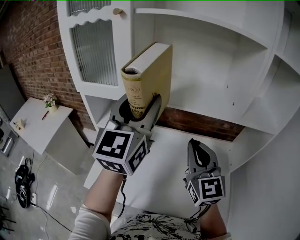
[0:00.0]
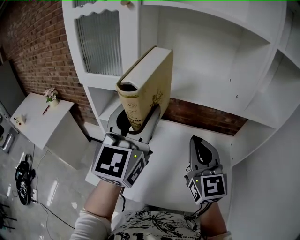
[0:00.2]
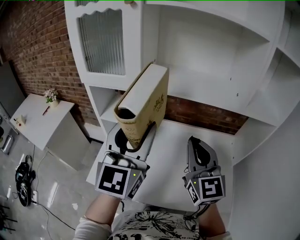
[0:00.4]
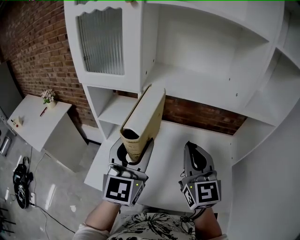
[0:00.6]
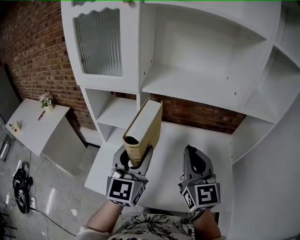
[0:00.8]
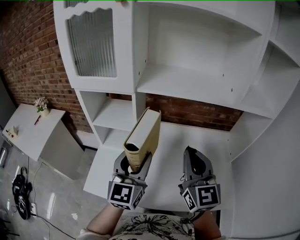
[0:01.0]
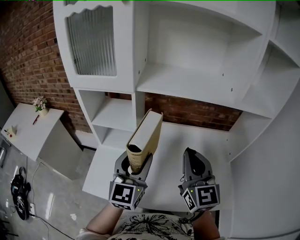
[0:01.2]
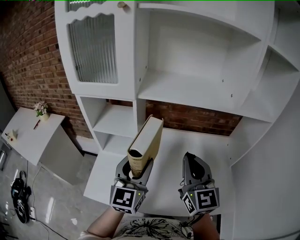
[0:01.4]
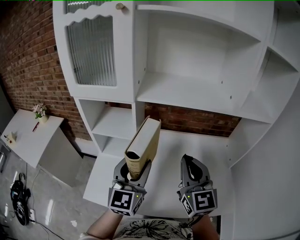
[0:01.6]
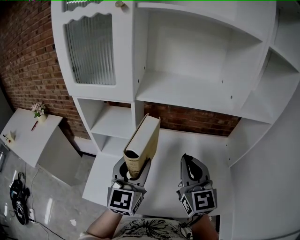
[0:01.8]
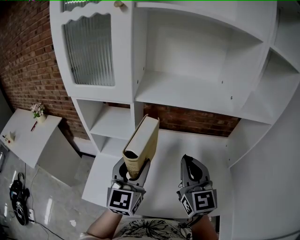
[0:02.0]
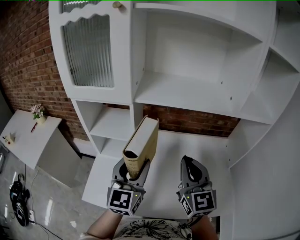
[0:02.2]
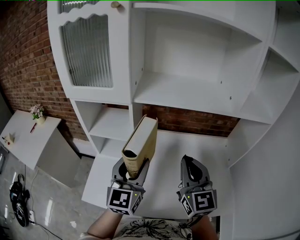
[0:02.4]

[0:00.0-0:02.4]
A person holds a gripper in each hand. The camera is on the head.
0.0 to 1.2 s: The right gripper heads downward, covering roughly 5 cm. The left gripper heads downward, covering roughly 25 cm.
1.2 to 2.4 s: The grippers make only small movements.

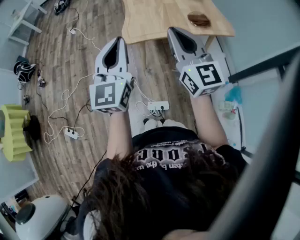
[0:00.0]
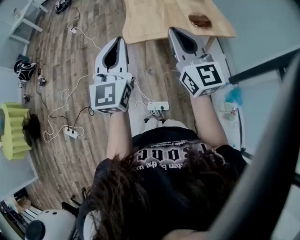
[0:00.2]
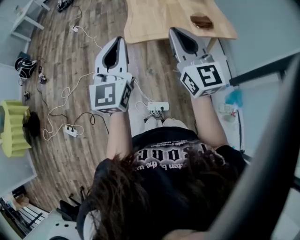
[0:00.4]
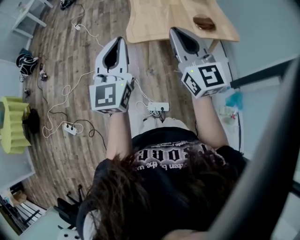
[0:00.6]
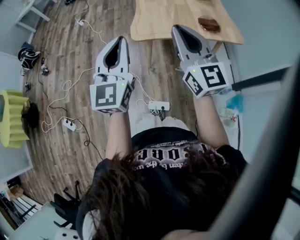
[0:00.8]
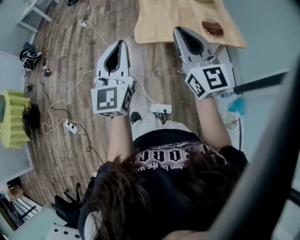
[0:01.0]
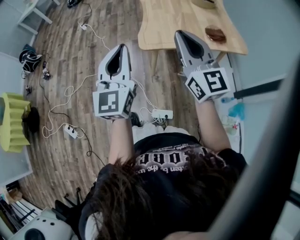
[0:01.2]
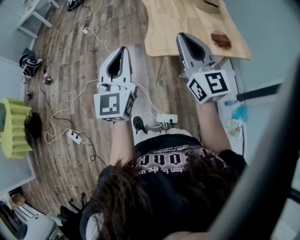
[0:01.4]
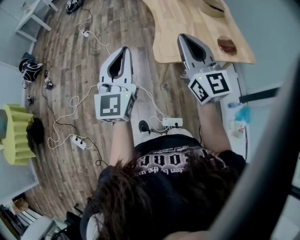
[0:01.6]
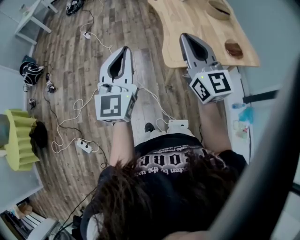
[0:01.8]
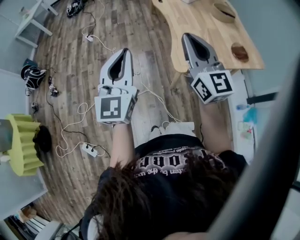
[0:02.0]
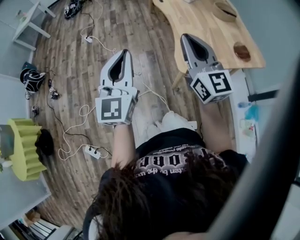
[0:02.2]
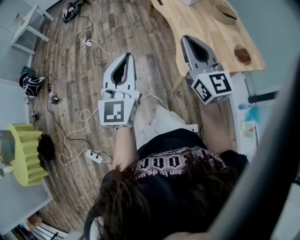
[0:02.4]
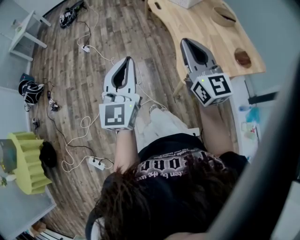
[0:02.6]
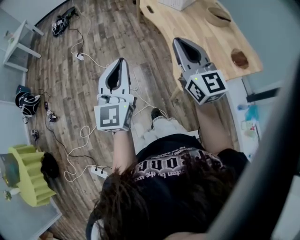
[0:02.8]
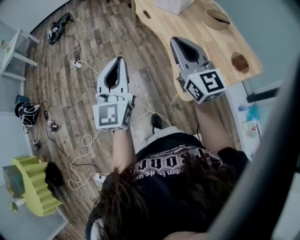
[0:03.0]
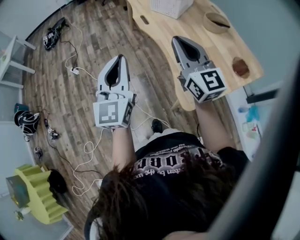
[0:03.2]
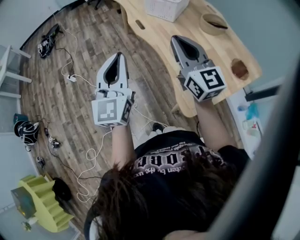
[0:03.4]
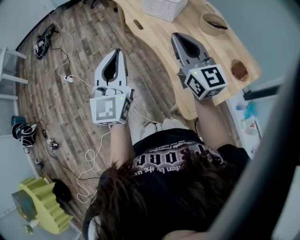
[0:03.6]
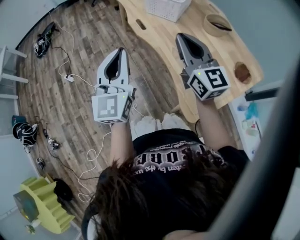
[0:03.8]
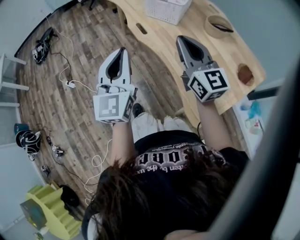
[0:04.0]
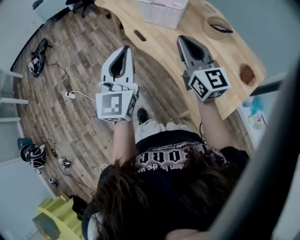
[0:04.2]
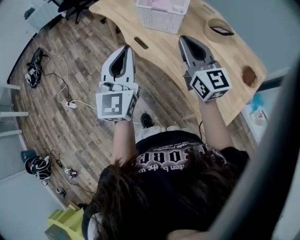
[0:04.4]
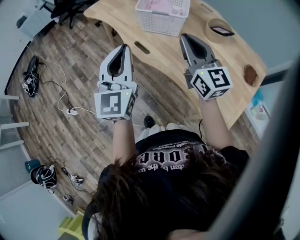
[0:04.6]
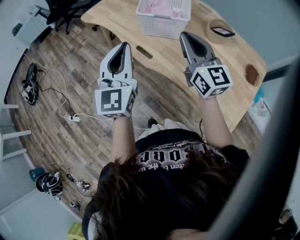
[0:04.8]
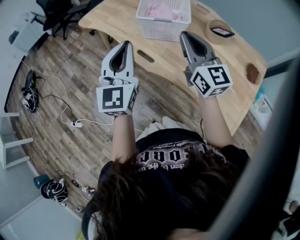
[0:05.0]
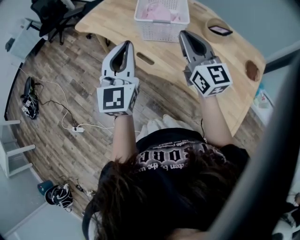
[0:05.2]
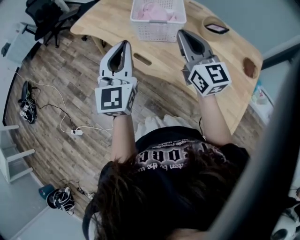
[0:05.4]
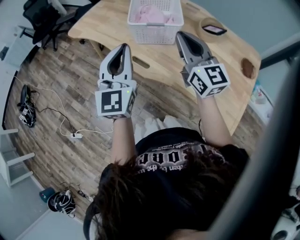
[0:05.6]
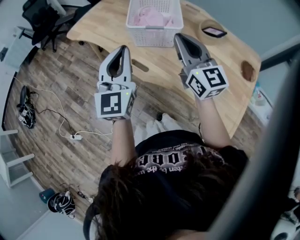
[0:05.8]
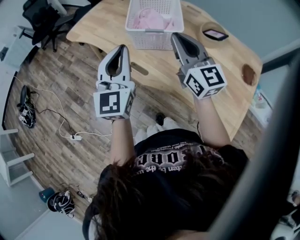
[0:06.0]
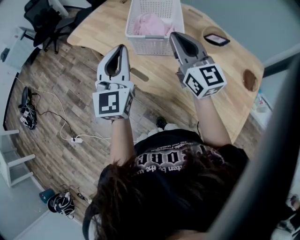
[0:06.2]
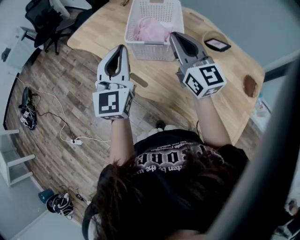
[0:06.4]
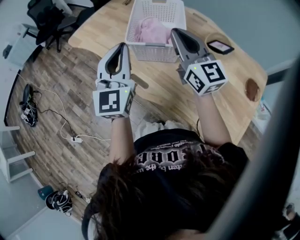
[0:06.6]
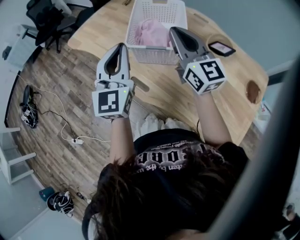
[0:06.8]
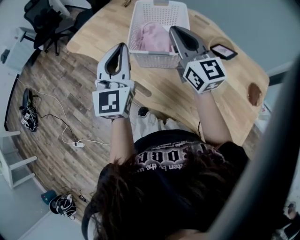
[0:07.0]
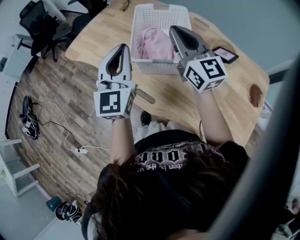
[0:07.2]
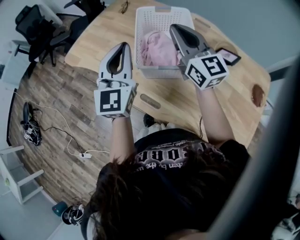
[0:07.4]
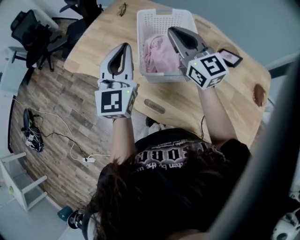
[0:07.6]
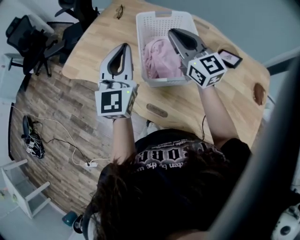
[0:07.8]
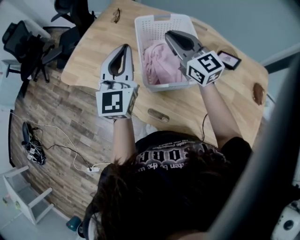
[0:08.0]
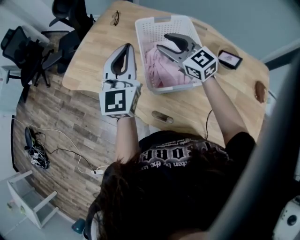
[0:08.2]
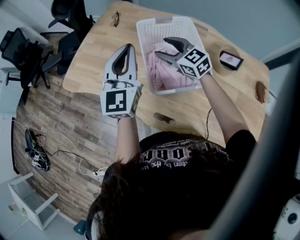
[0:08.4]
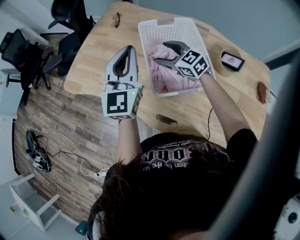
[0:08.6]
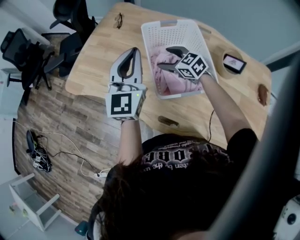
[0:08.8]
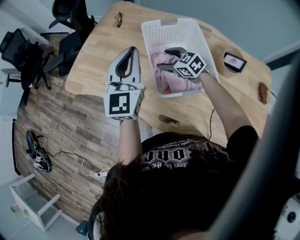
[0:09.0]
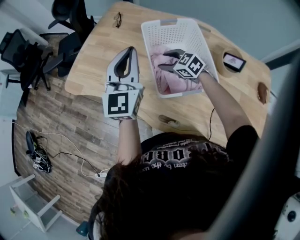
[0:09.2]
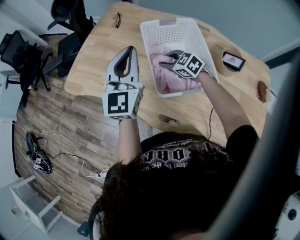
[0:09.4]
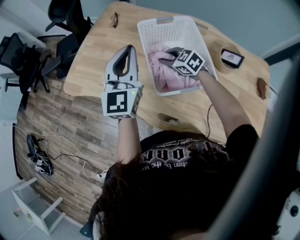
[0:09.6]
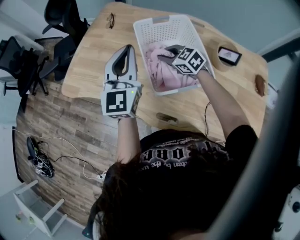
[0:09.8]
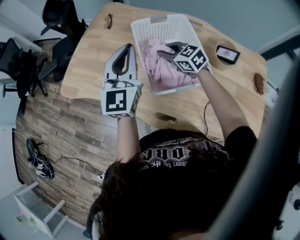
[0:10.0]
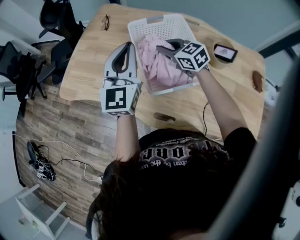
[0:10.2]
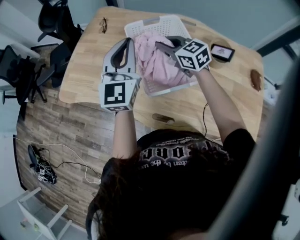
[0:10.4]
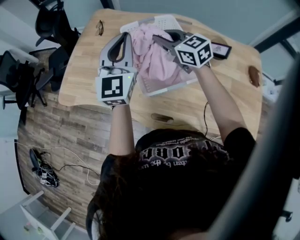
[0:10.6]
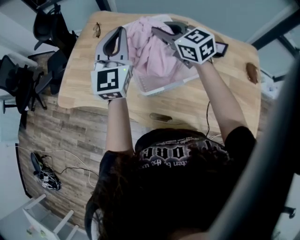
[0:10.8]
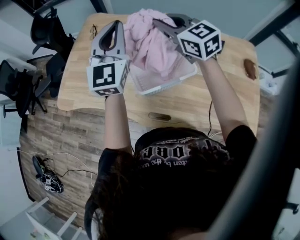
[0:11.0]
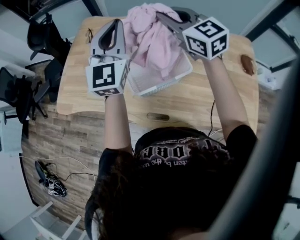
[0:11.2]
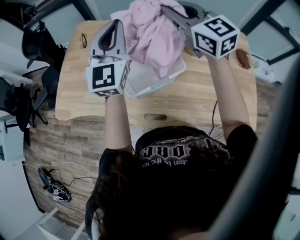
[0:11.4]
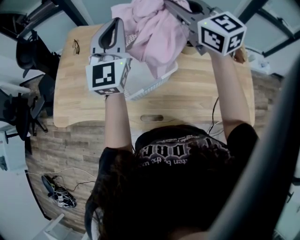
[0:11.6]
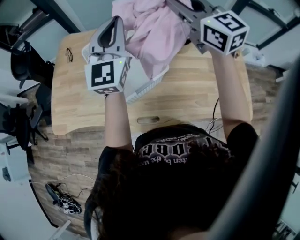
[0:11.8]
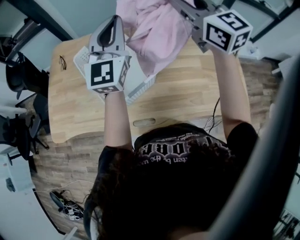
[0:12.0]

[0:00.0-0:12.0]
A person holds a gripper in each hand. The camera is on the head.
0.0 to 1.6 s: The grippers both shift to the left and forward by some 20 cm.
1.6 to 3.0 s: Both grippers move forward and to the left, approximately 25 cm.
3.0 to 4.4 s: The grippers both shift forward by some 30 cm. The left gripper swivels approximately 20 degrees. Meanwhile the right gripper rotates about 20 degrees.
4.4 to 6.0 s: The grippers both shift forward by about 15 cm.
6.0 to 7.6 s: Both grippers move forward, roughly 20 cm.
7.6 to 9.0 s: The left gripper goes roughly 10 cm forward; the right gripper goes about 25 cm downward and forward, tips its fingers downward by roughly 40 degrees, and opens.
9.0 to 10.4 s: The left gripper shifts by approximately 5 cm, while the right gripper travels upward by approximately 10 cm, turns by some 20 degrees, and closes its fingers.
10.4 to 12.0 s: The right gripper changes place by about 35 cm, and turns by roughly 40 degrees, while the left gripper changes place by roughly 20 cm, and rotates some 20 degrees.

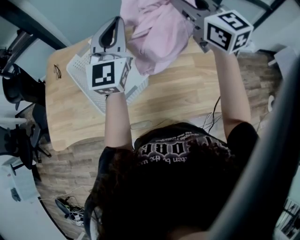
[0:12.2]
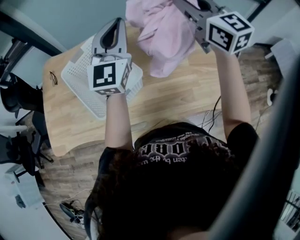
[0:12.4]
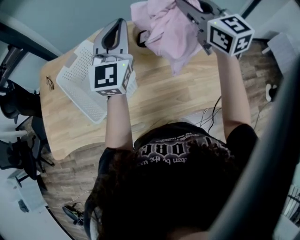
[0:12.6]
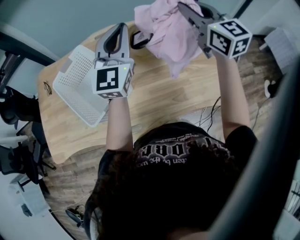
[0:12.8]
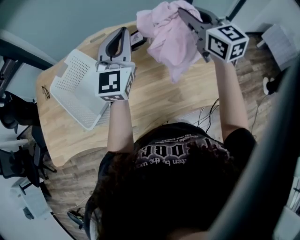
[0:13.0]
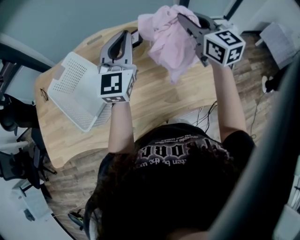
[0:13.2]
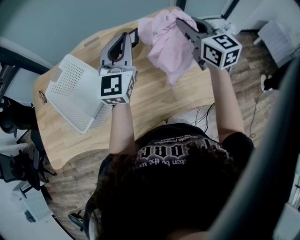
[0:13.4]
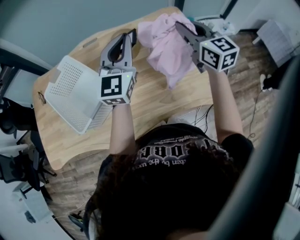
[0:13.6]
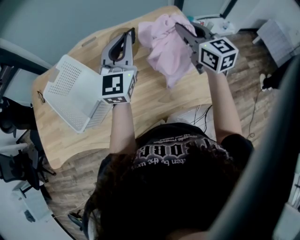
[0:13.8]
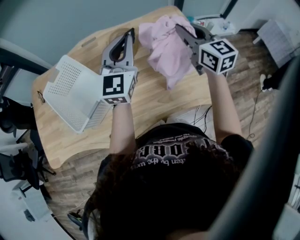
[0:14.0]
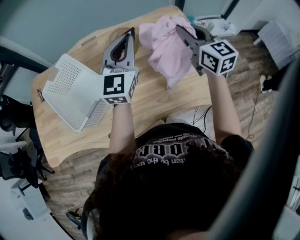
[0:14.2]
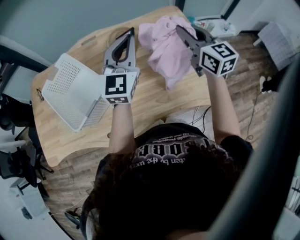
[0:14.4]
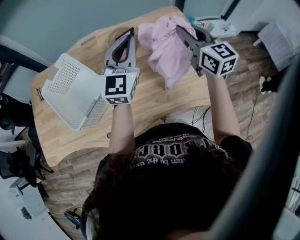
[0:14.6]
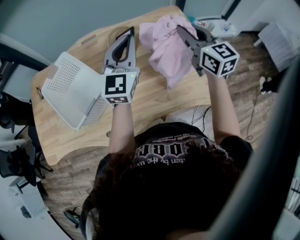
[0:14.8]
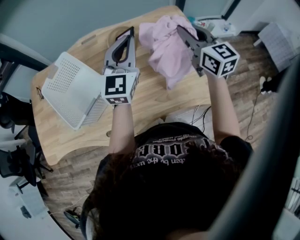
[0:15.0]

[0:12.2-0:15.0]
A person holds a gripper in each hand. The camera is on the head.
12.2 to 13.6 s: The right gripper is displaced to the right and downward by some 25 cm. The left gripper travels to the right by roughly 20 cm.
13.6 to 15.0 s: The grippers move only a little.

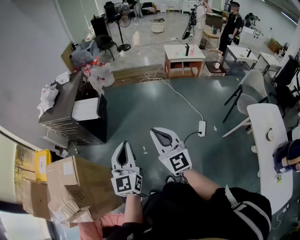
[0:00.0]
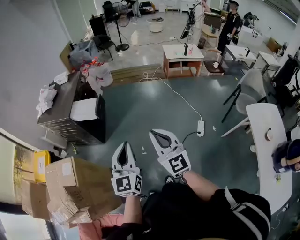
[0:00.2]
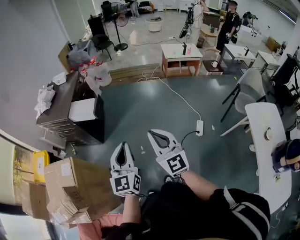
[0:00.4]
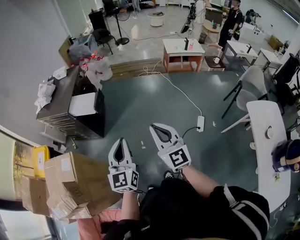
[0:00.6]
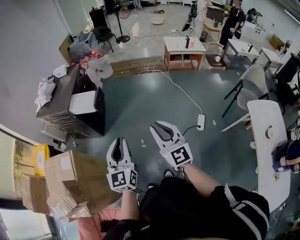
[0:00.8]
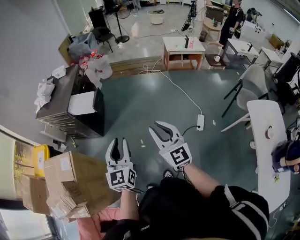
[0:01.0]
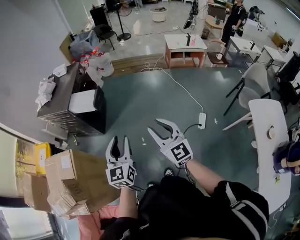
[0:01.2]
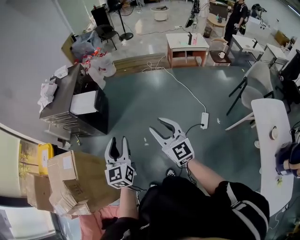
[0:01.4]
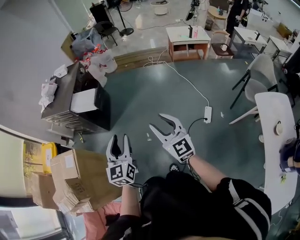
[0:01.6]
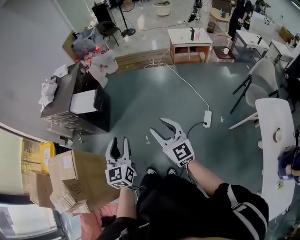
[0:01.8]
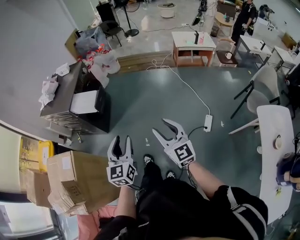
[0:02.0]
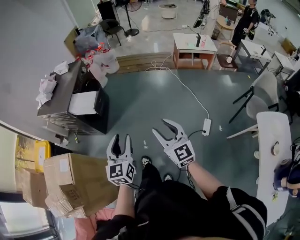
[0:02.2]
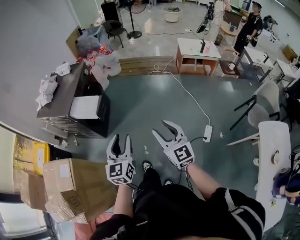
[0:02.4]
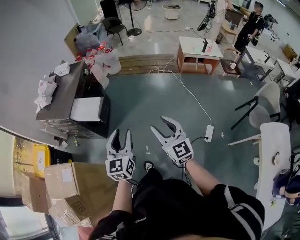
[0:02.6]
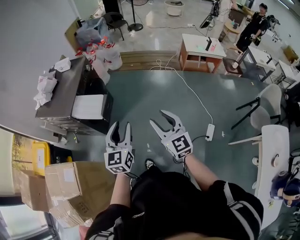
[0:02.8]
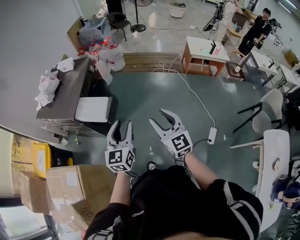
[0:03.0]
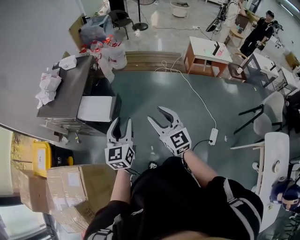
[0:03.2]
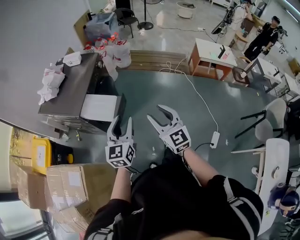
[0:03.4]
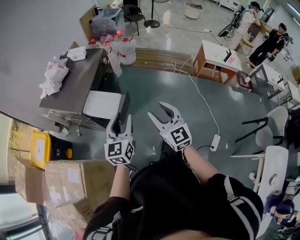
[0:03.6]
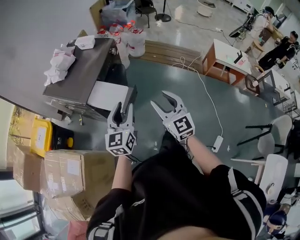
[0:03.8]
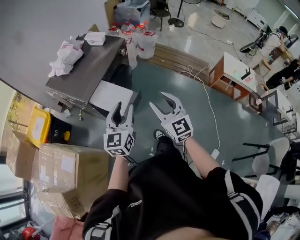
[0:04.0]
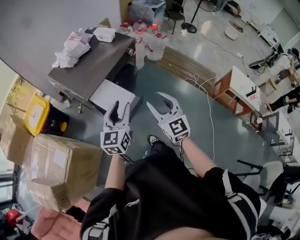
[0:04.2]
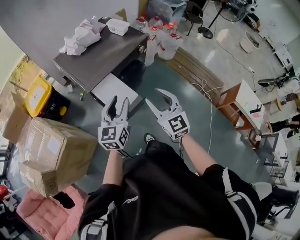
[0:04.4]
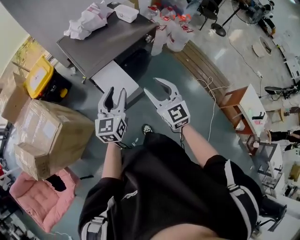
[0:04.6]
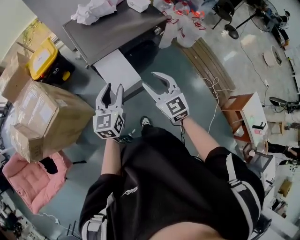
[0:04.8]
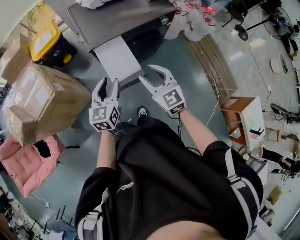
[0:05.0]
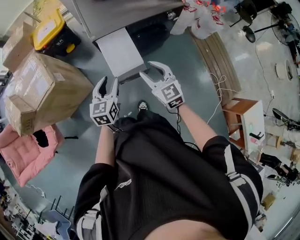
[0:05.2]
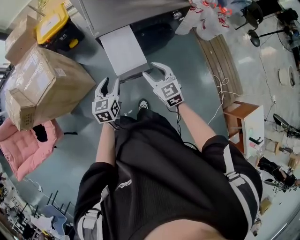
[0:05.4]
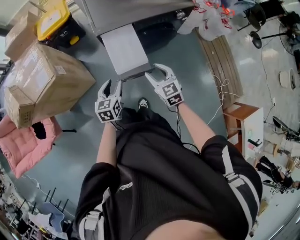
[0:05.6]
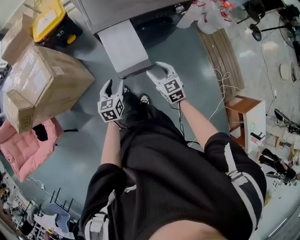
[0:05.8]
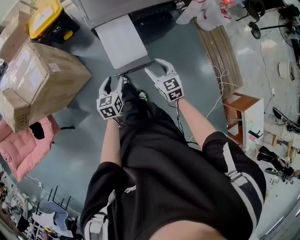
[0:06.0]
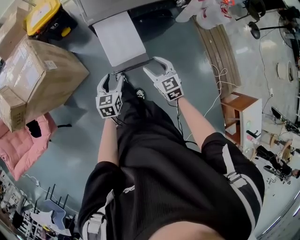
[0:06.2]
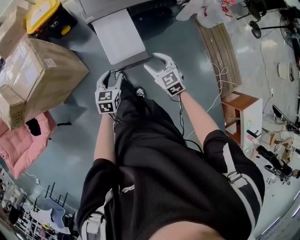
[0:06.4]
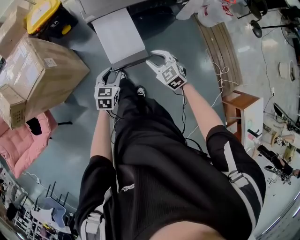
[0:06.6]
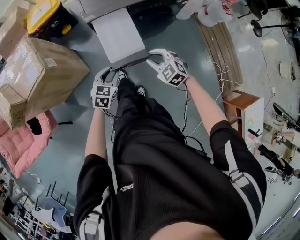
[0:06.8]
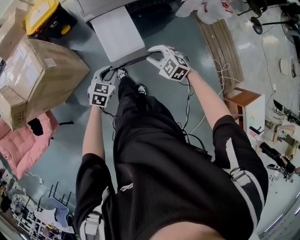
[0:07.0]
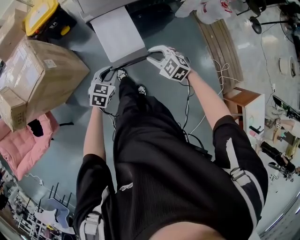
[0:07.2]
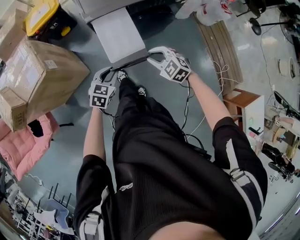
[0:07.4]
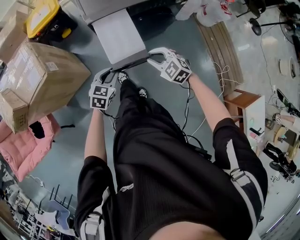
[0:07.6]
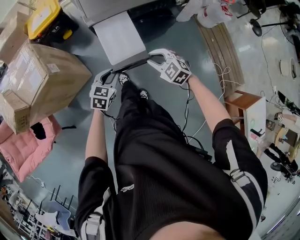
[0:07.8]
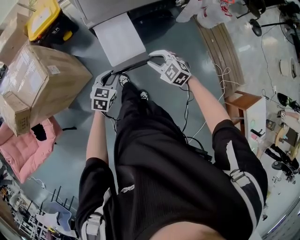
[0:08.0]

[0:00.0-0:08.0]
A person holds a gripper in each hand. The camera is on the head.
0.0 to 1.6 s: The right gripper is displaced to the right and downward by about 10 cm, and opens up; the left gripper is displaced downward by approximately 5 cm, and opens its fingers.
1.6 to 3.2 s: The left gripper shifts about 30 cm forward. The right gripper moves forward and to the left, roughly 35 cm.
3.2 to 4.8 s: The left gripper ends up approximately 20 cm from where it was, and swivels some 50 degrees; the right gripper shifts by roughly 30 cm, and rotates approximately 50 degrees.
4.8 to 6.4 s: The grippers both shift downward by some 20 cm. The left gripper turns by some 30 degrees. The right gripper turns by about 20 degrees.
6.4 to 8.0 s: The right gripper rotates approximately 20 degrees, and closes its fingers. Meanwhile the left gripper closes.
